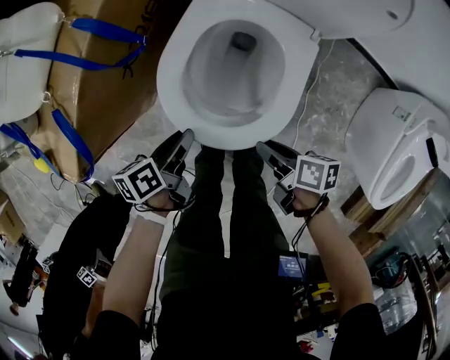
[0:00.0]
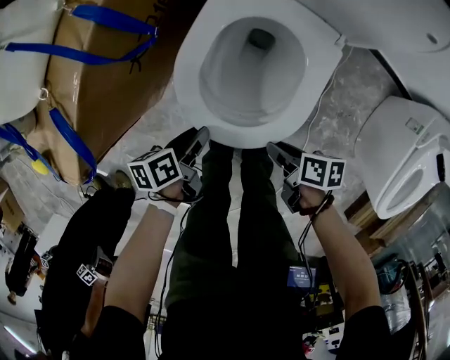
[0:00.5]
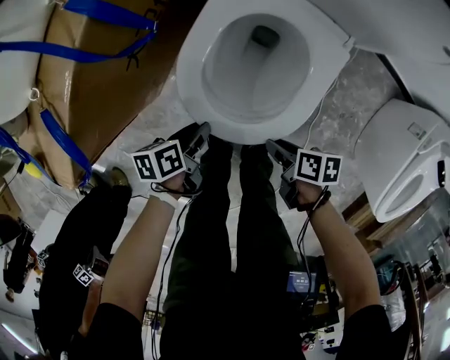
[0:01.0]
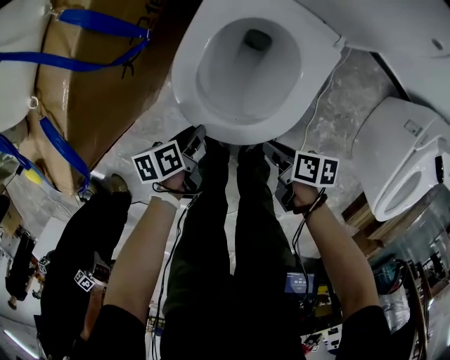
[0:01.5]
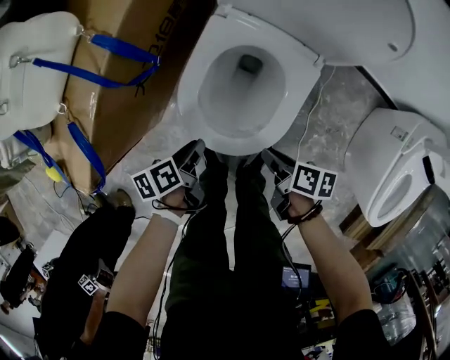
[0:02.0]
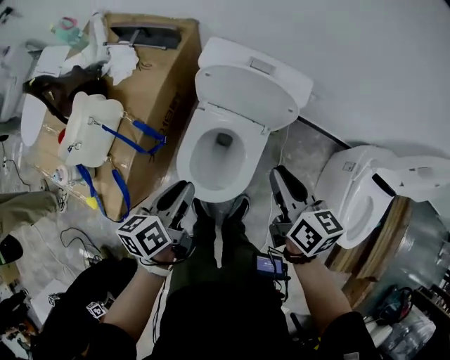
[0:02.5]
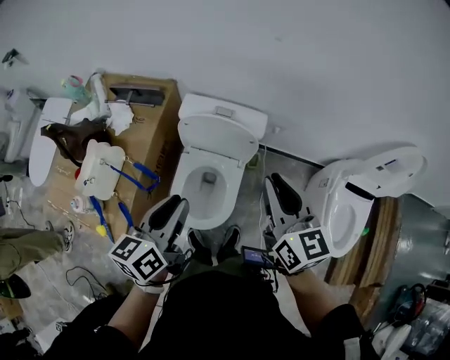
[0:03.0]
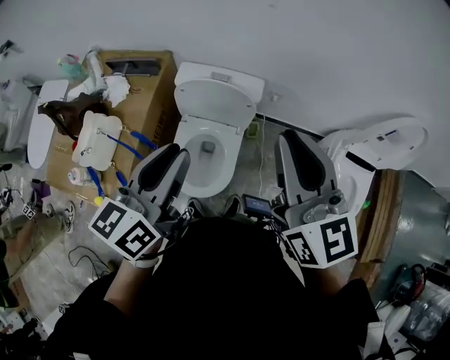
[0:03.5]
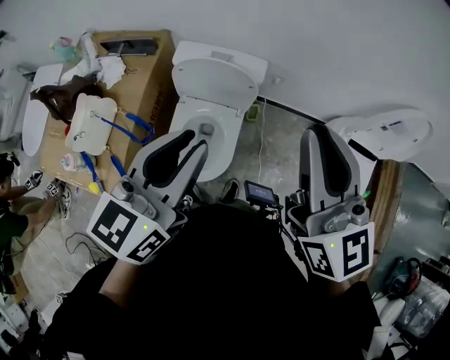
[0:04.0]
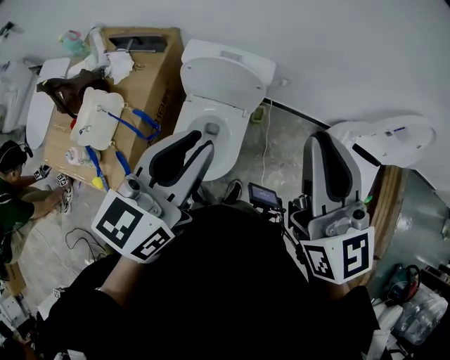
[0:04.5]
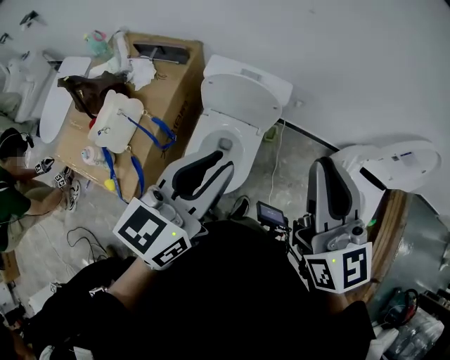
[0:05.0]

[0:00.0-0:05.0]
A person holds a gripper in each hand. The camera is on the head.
0:00.0 to 0:02.5: Both grippers move upward, roughly 35 cm. The left gripper swivels about 20 degrees. The right gripper turns by some 50 degrees.
0:02.5 to 0:05.0: Both grippers move upward, about 30 cm. The right gripper turns by about 40 degrees; the left gripper turns by roughly 50 degrees.

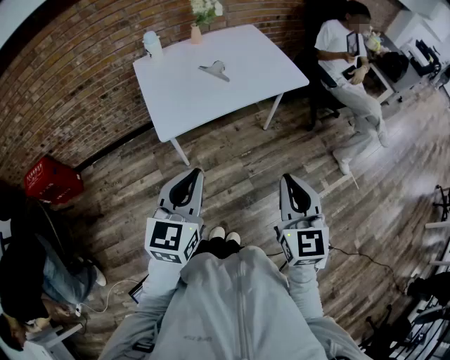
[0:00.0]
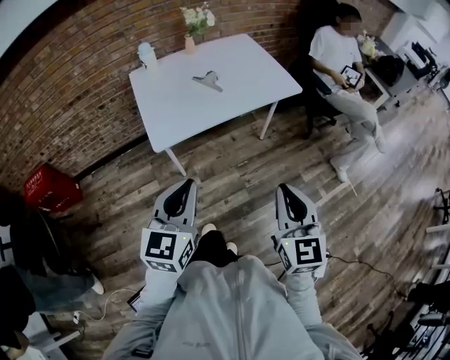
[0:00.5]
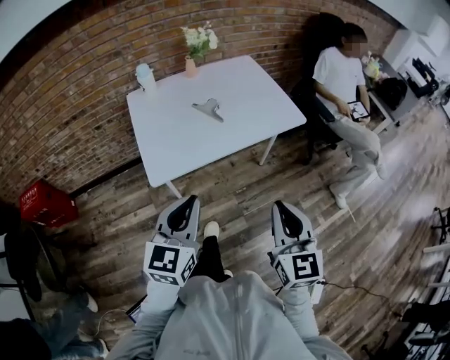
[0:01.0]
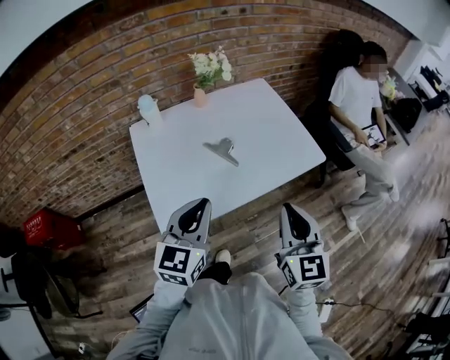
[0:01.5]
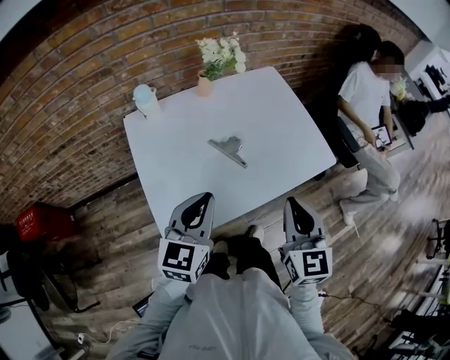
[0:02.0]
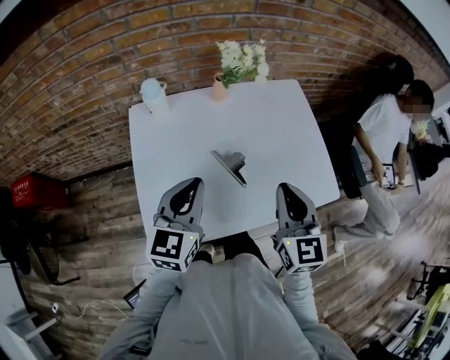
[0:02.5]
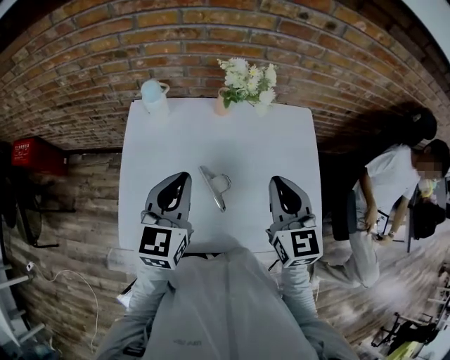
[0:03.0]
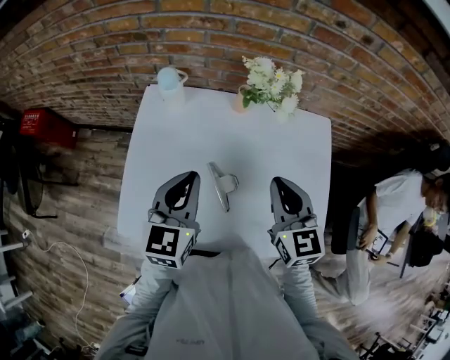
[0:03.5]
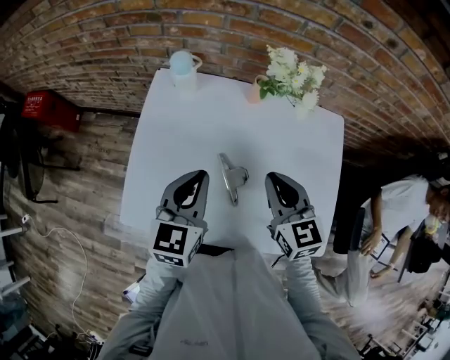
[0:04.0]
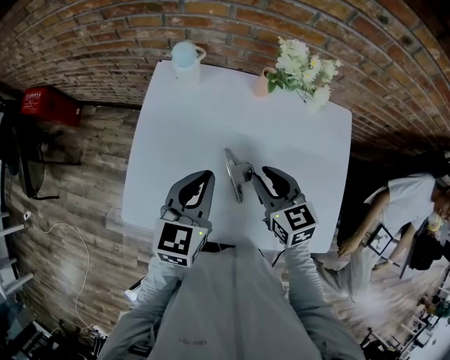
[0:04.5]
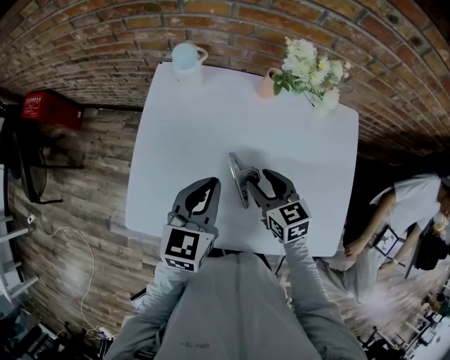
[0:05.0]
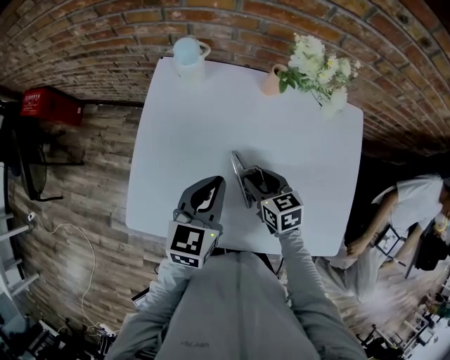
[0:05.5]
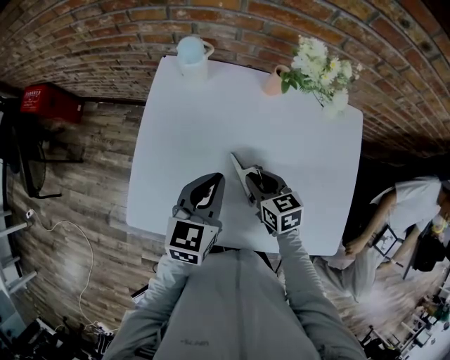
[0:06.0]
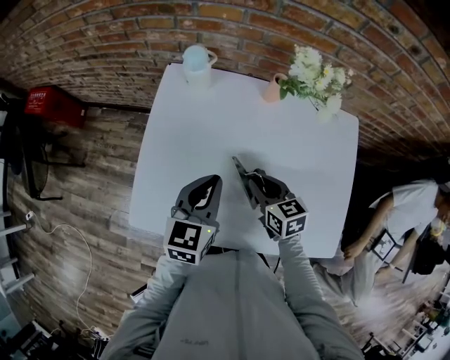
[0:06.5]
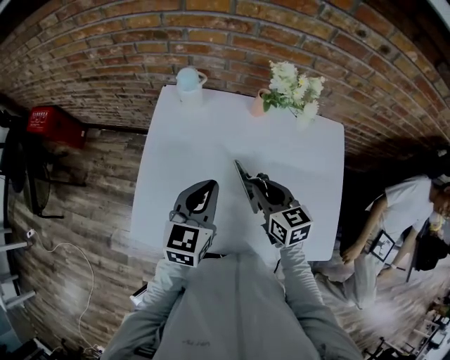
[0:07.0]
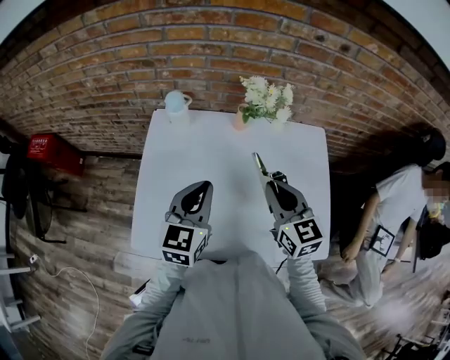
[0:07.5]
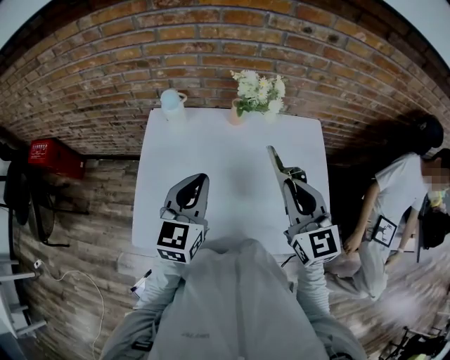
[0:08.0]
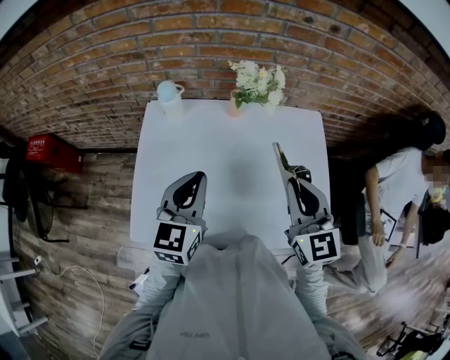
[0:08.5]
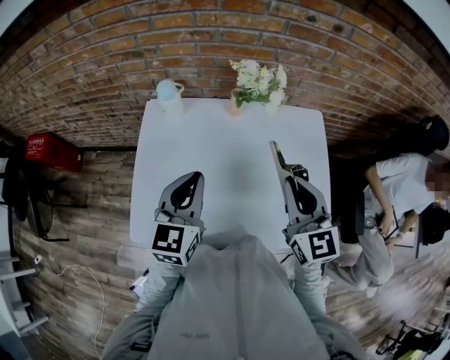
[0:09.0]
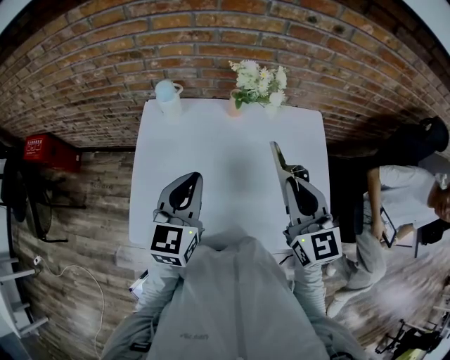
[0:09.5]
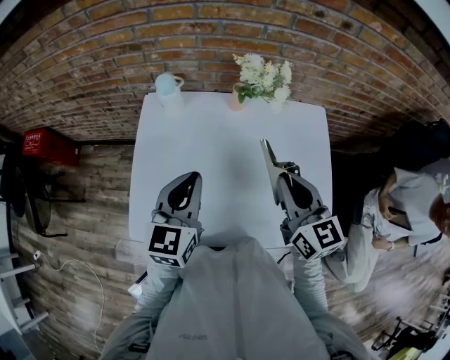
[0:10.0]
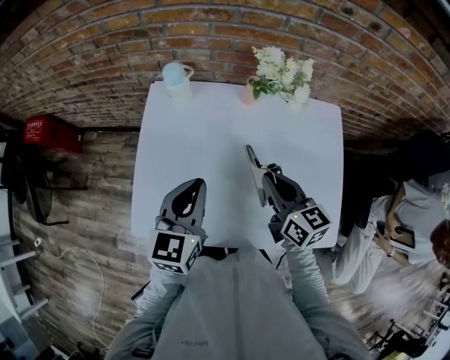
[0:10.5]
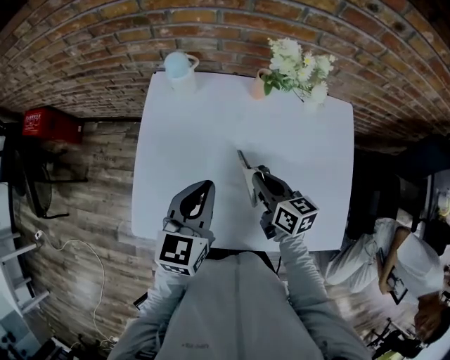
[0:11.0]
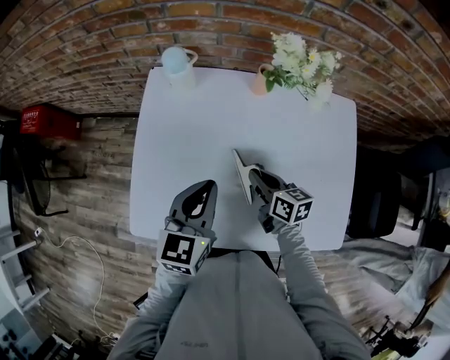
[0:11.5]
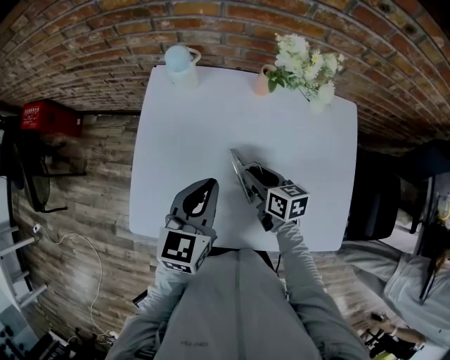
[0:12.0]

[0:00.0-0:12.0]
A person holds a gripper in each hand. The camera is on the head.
0:00.0 to 0:02.0: Both grippers move forward, about 35 cm.
0:02.0 to 0:04.0: The left gripper changes place by roughly 15 cm, and turns by about 40 degrees; the right gripper moves approximately 25 cm, and rotates some 50 degrees.
0:04.0 to 0:06.0: The left gripper shifts approximately 5 cm downward; the right gripper travels downward by approximately 20 cm, swivels approximately 20 degrees, and opens, then closes again.
0:06.0 to 0:08.0: The right gripper goes approximately 30 cm upward and to the right, and angles its fingers upward, by some 30 degrees, while the left gripper moves upward, approximately 15 cm.
0:08.0 to 0:10.0: The grippers move only a little.
0:10.0 to 0:12.0: The left gripper heads downward, covering about 10 cm, while the right gripper shifts approximately 25 cm downward, rotates approximately 40 degrees, and opens up.

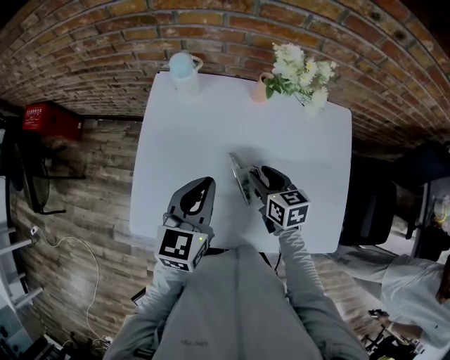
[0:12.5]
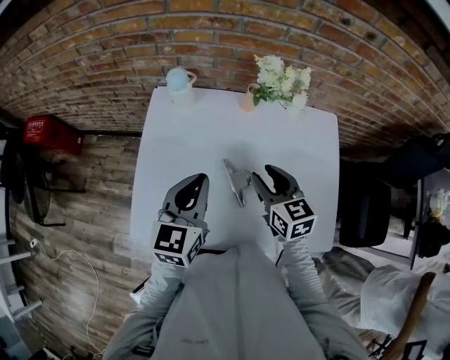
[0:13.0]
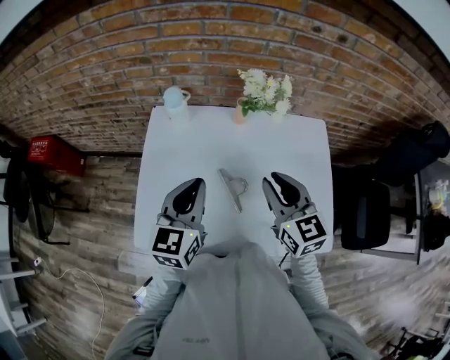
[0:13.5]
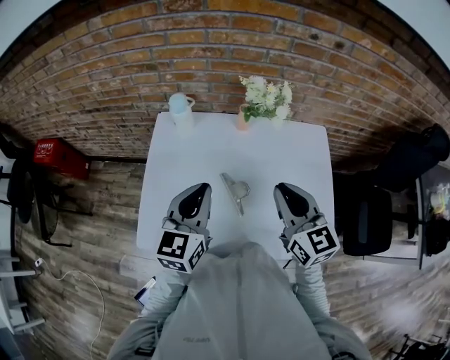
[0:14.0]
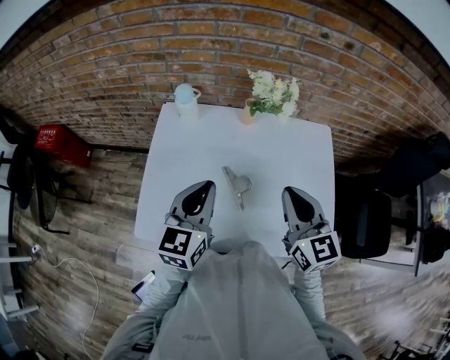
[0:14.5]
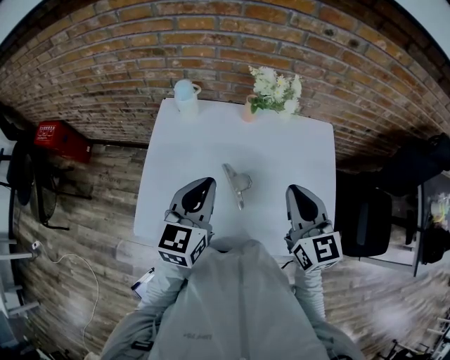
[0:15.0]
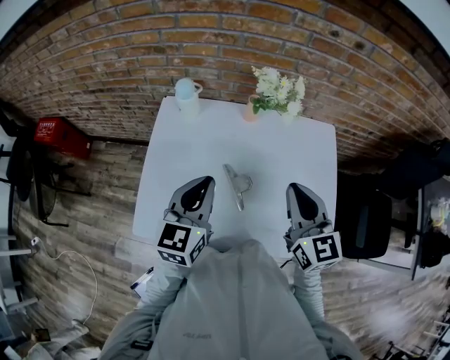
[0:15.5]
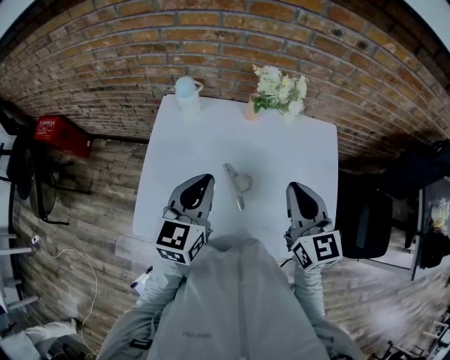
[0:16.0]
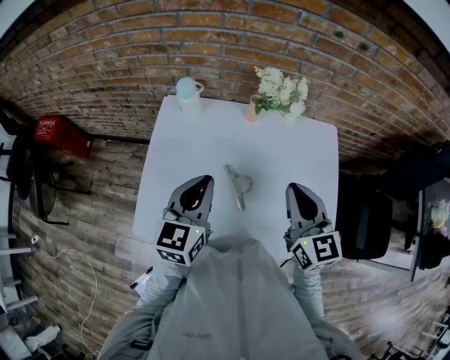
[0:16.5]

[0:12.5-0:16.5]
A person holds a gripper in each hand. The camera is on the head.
0:12.5 to 0:14.5: The left gripper goes about 5 cm upward. The right gripper is displaced upward by some 25 cm, swivels roughly 30 degrees, and closes its fingers.
0:14.5 to 0:16.5: The grippers make only small movements.

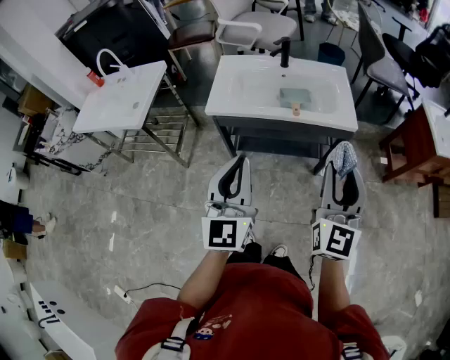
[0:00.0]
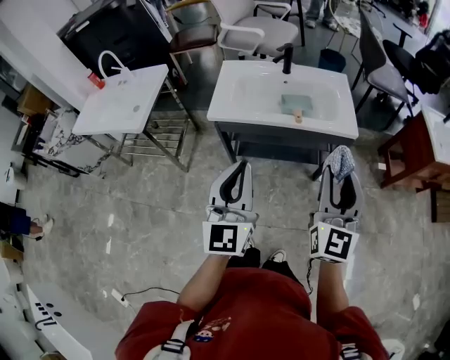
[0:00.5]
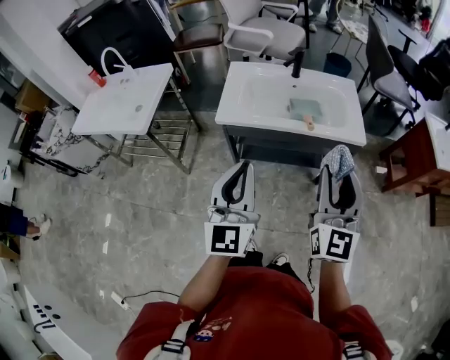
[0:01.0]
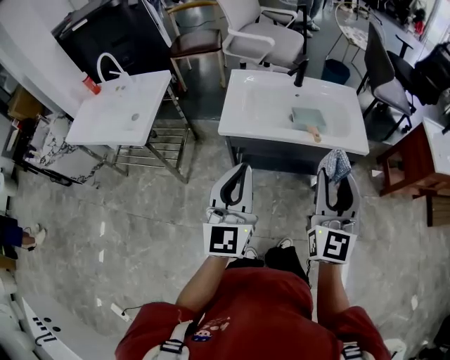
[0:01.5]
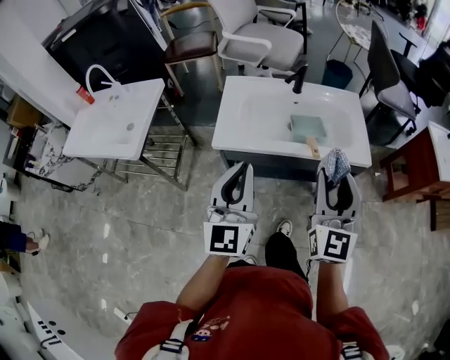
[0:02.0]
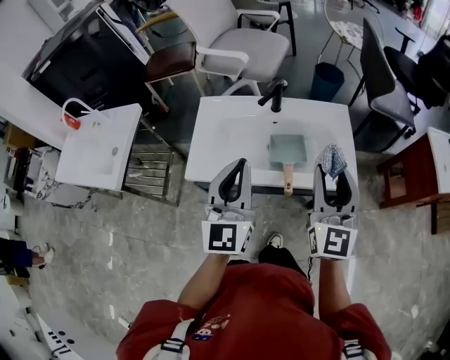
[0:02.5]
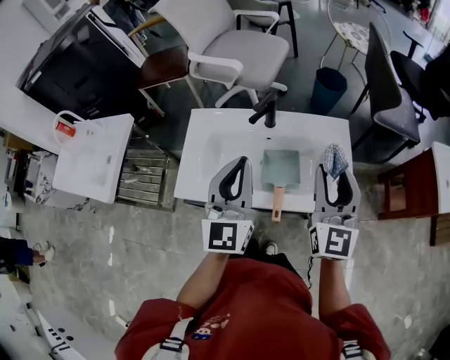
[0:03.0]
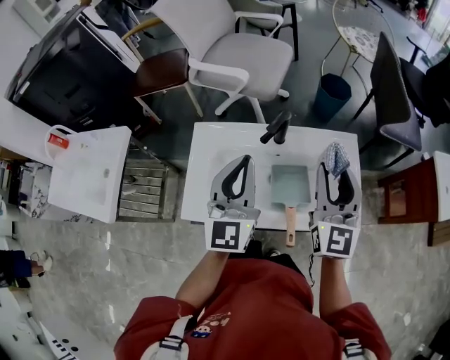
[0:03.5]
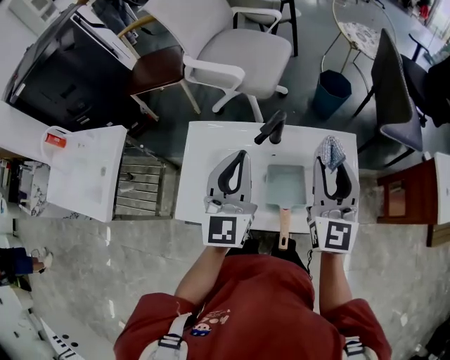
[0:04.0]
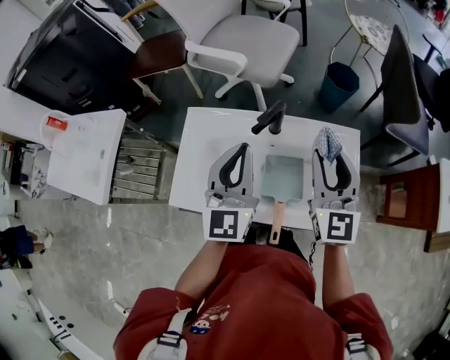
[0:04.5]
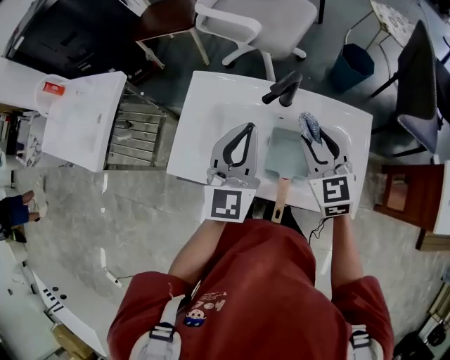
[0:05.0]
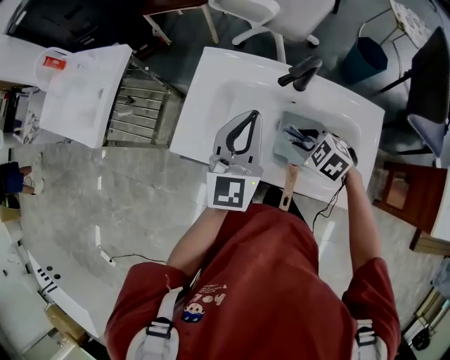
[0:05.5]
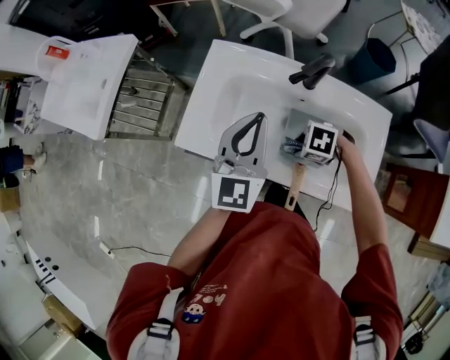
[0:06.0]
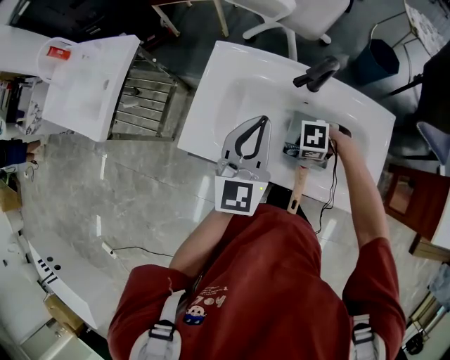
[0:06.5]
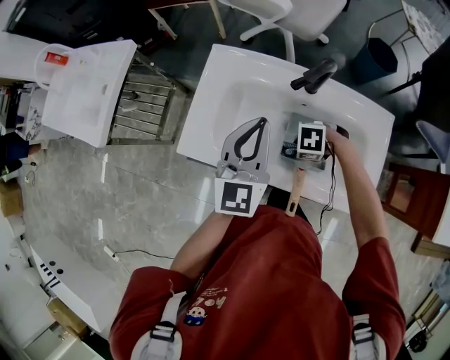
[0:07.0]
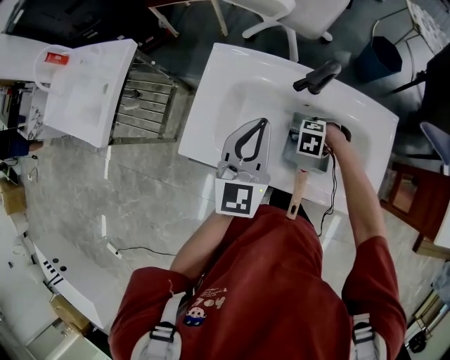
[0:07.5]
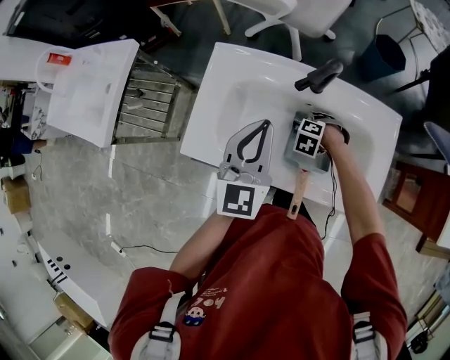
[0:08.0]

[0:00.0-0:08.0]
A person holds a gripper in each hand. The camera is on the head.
0:00.0 to 0:02.0: The two grippers go roughly 15 cm forward and to the left.
0:02.0 to 0:04.0: The grippers both shift forward by some 35 cm.
0:04.0 to 0:06.0: The left gripper travels downward by some 10 cm, while the right gripper shifts roughly 35 cm downward, and tips its fingers downward by about 70 degrees.
0:06.0 to 0:08.0: The right gripper shifts roughly 10 cm downward, and swivels some 30 degrees.
